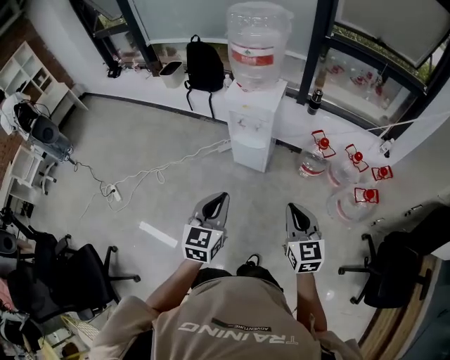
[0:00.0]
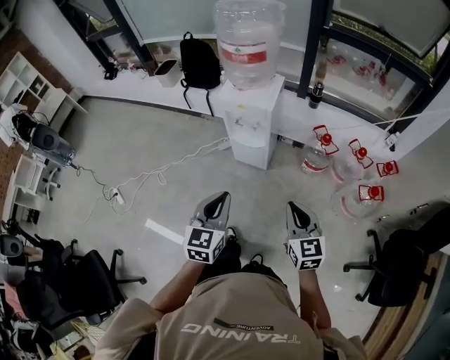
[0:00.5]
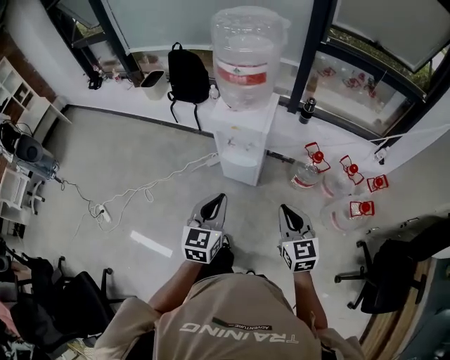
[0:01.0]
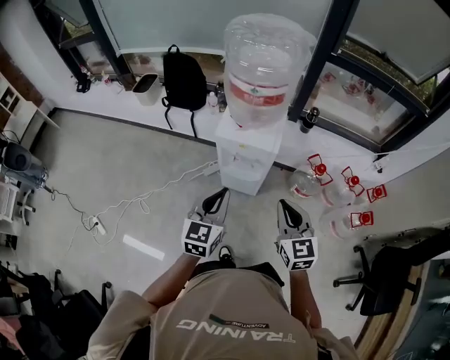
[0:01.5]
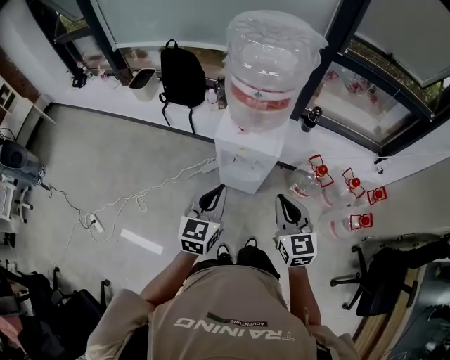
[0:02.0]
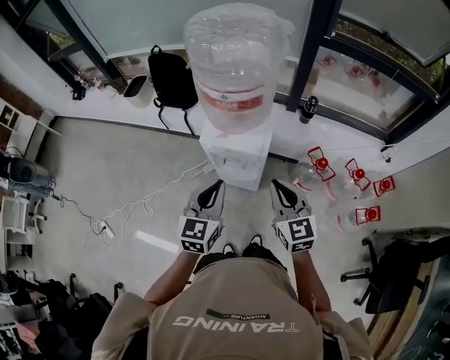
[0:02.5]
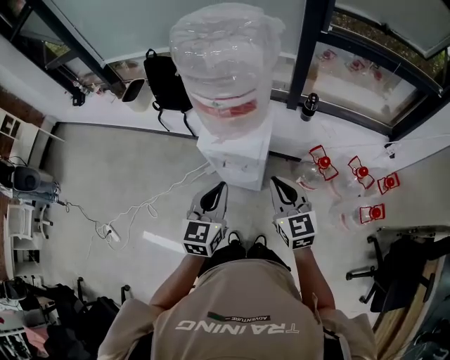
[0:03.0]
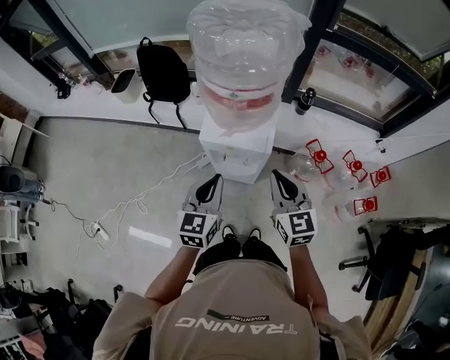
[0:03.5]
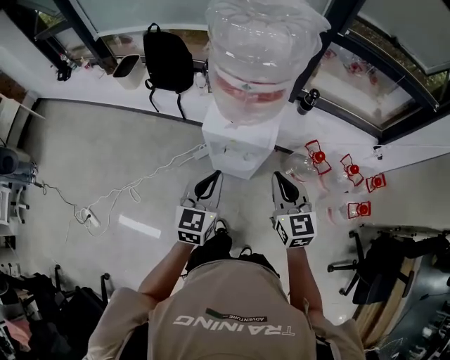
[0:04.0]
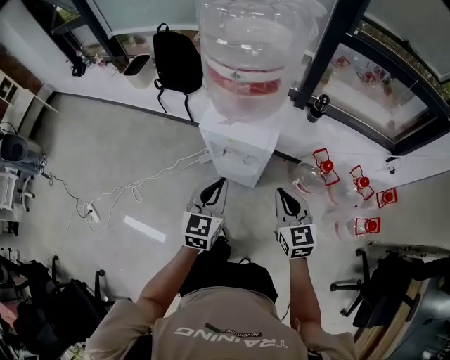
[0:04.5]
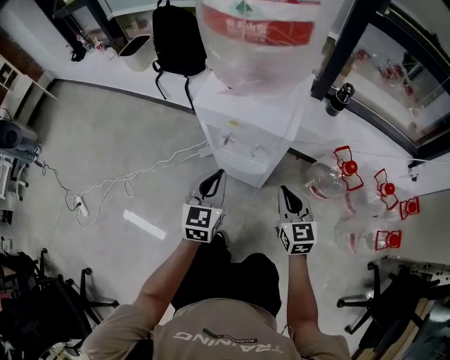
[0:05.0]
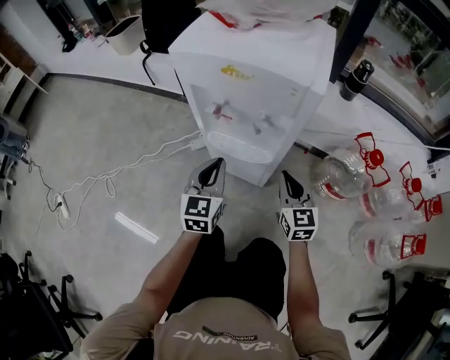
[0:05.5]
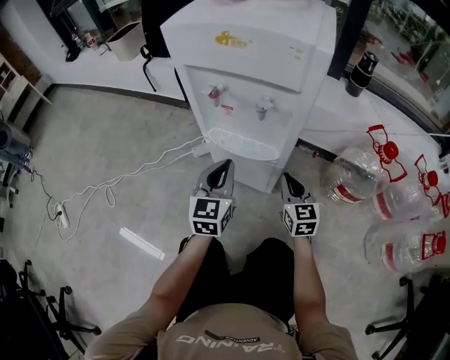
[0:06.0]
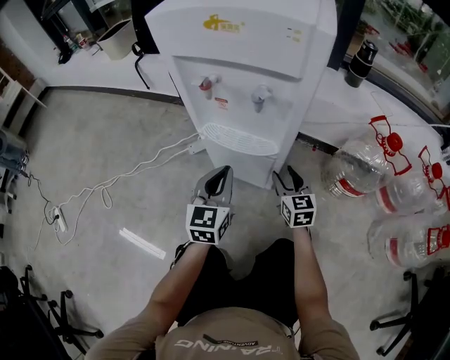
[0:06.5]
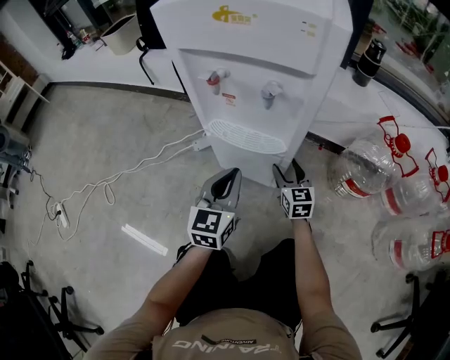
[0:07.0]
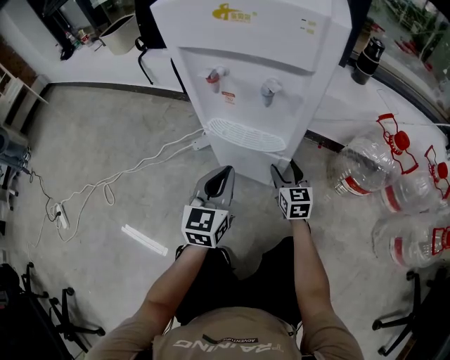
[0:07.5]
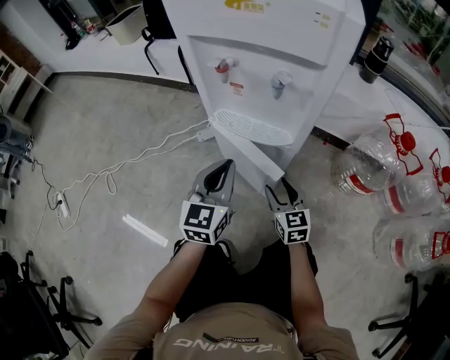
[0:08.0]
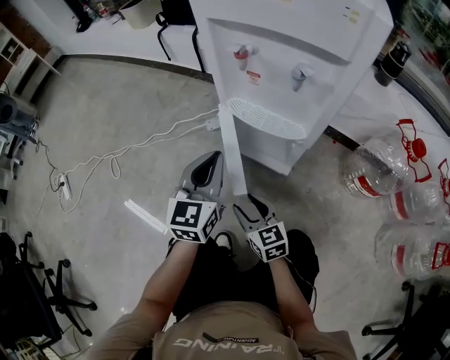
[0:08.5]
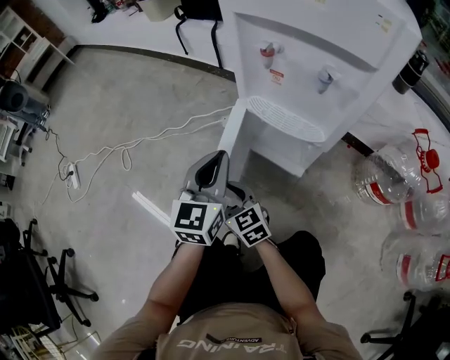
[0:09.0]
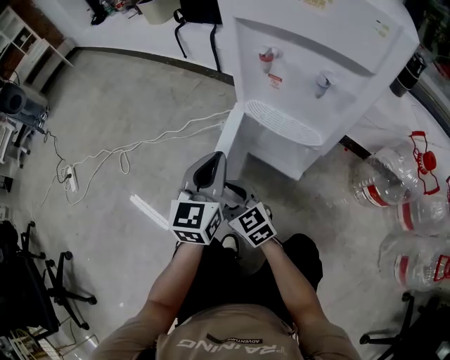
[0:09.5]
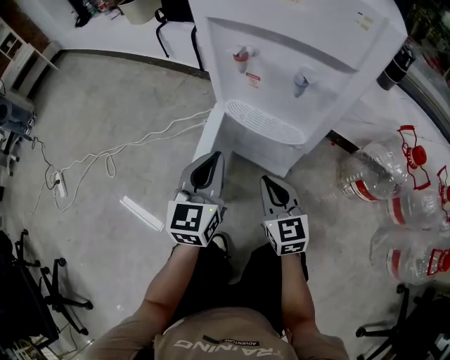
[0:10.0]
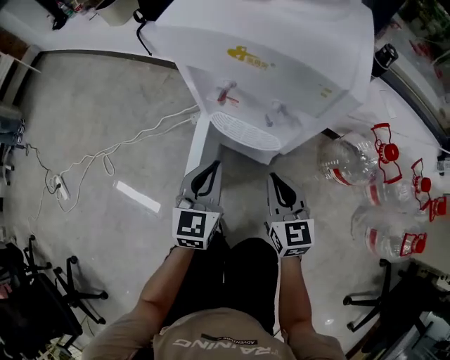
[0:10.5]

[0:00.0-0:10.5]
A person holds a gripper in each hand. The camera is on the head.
0:00.0 to 0:02.0: Both grippers travel together forward, roughly 30 cm.
0:02.0 to 0:04.0: Both grippers travel together forward, some 5 cm. The left gripper travels to the right and back again, some 10 cm each way.
0:04.0 to 0:06.5: Both grippers move downward, roughly 60 cm. The right gripper opens.
0:06.5 to 0:08.5: The left gripper heads to the left, covering roughly 10 cm. The right gripper goes approximately 25 cm to the left and backward, and swivels approximately 30 degrees.
0:08.5 to 0:10.5: The right gripper moves upward and to the right, about 25 cm, swivels approximately 20 degrees, and closes up; the left gripper goes approximately 5 cm upward.

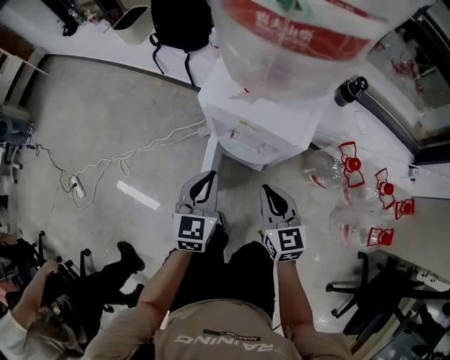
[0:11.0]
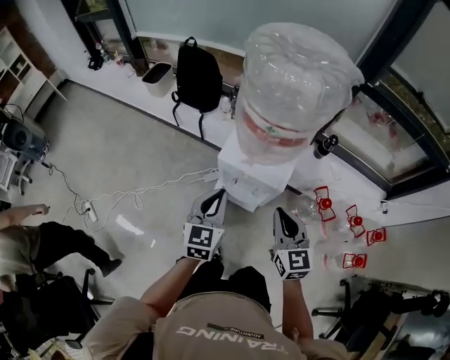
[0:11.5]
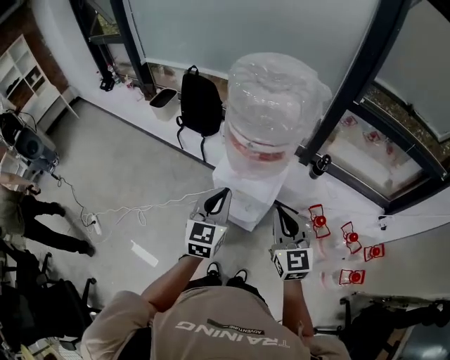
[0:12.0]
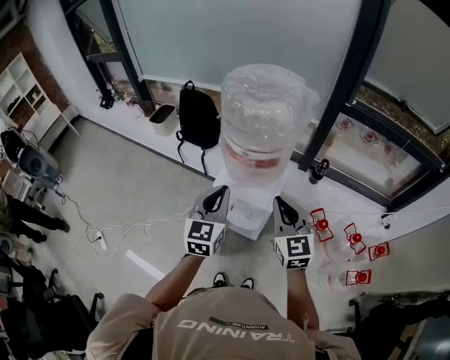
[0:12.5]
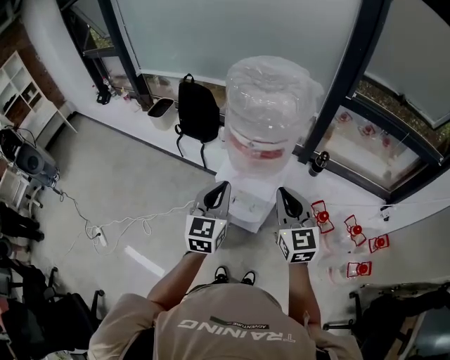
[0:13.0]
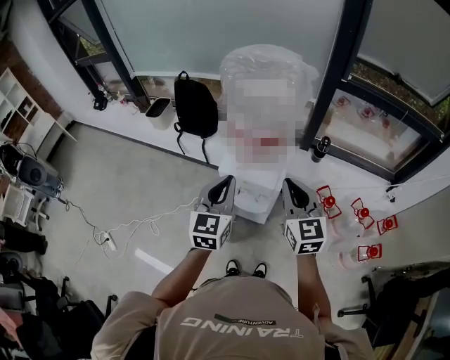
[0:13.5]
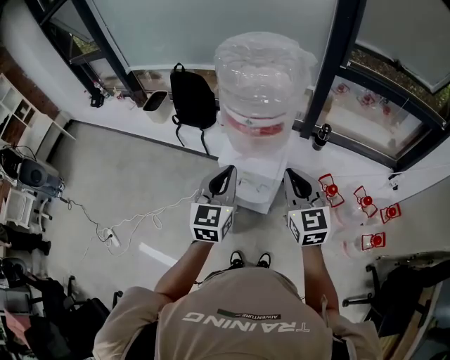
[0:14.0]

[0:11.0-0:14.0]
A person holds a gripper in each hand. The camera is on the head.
0:11.0 to 0:12.5: Both grippers travel together upward, roughly 35 cm. The right gripper rotates approximately 20 degrees.
0:12.5 to 0:14.0: The grippers stay close to where they were, moving slightly.

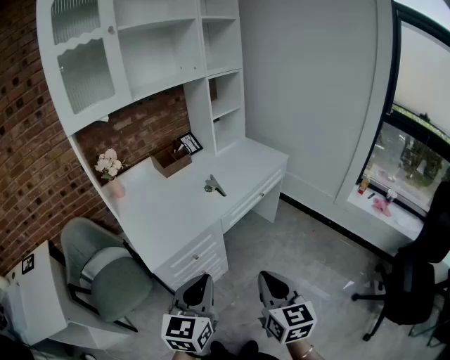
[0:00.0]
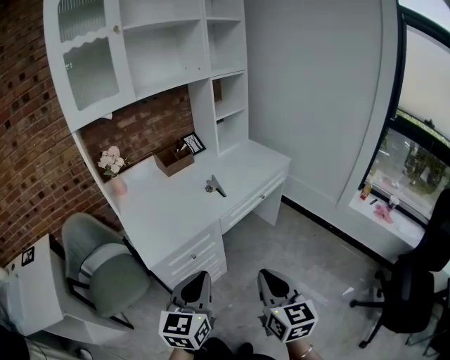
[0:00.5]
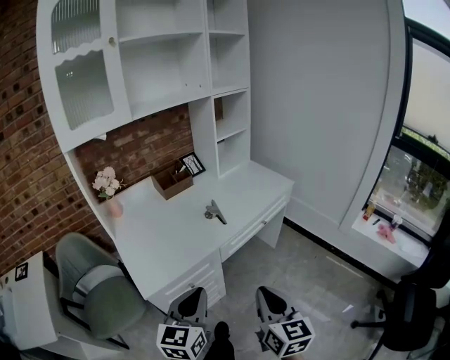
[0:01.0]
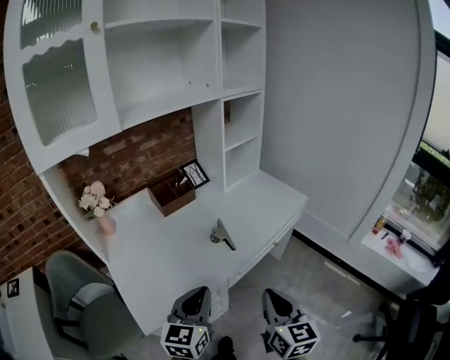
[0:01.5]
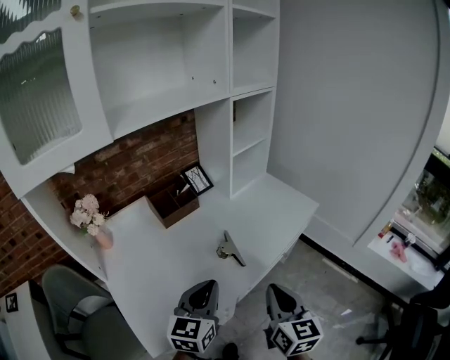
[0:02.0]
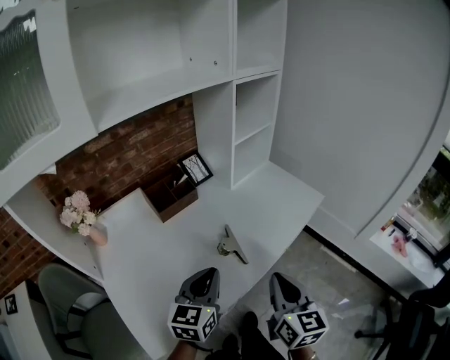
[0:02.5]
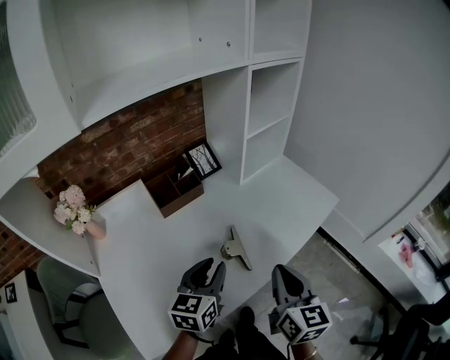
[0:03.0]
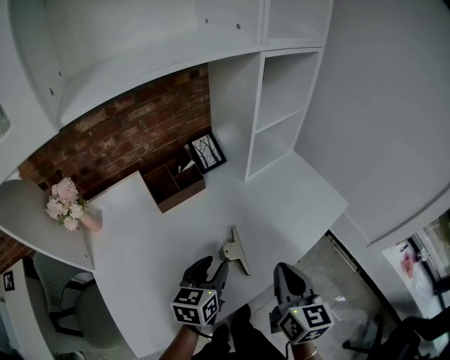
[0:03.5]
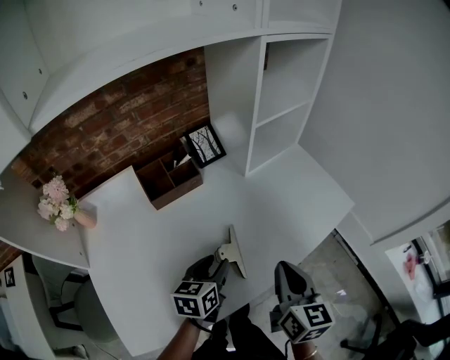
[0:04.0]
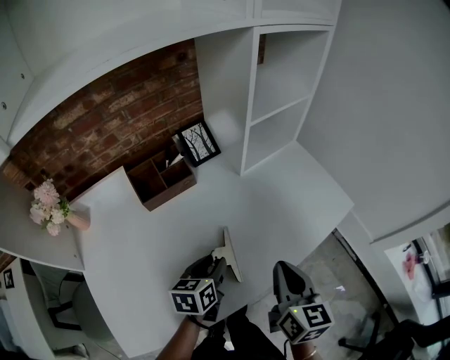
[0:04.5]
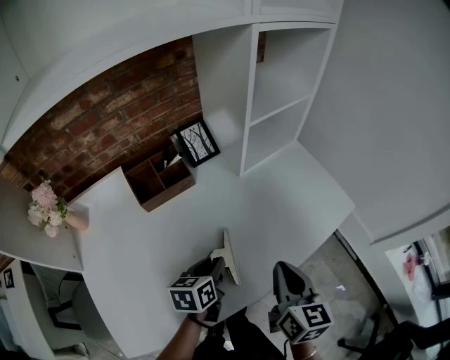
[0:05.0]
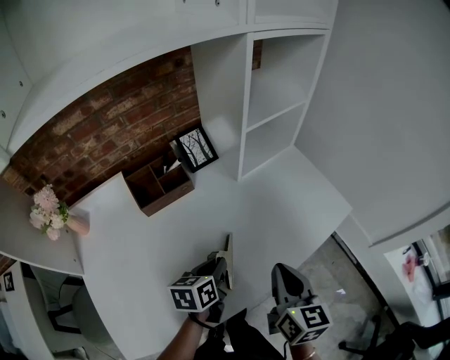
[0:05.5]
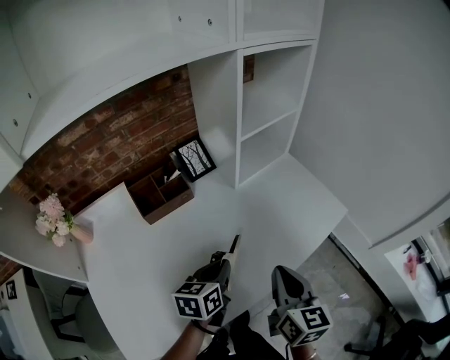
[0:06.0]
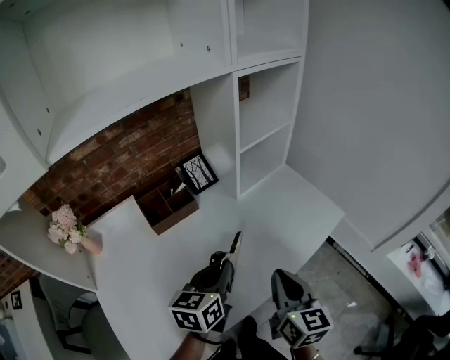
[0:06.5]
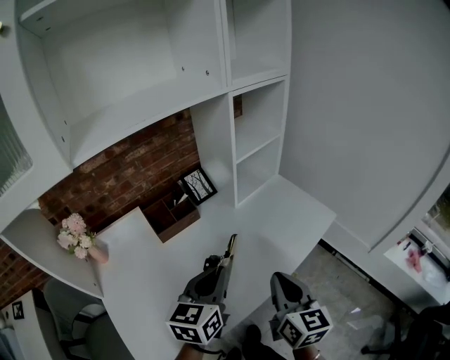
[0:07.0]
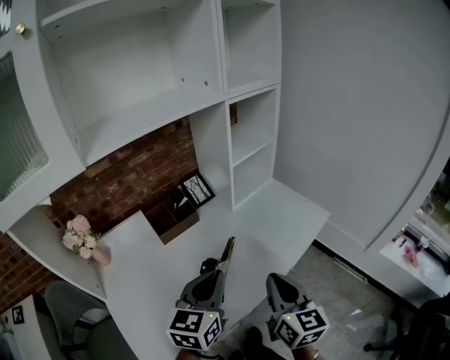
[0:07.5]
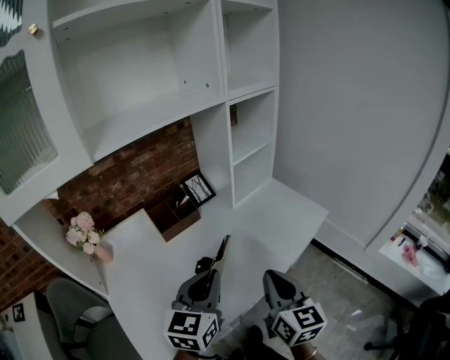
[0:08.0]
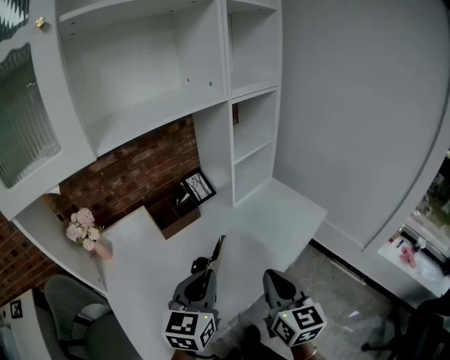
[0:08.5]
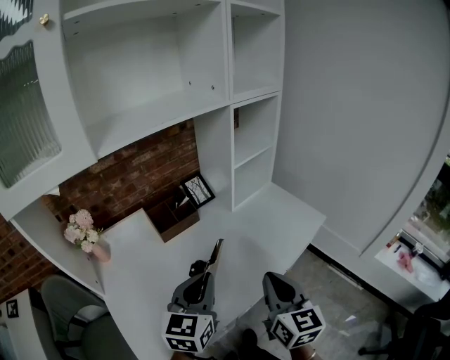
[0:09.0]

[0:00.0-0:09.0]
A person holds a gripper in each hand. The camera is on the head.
0:00.0 to 0:02.0: The grippers both shift forward by some 35 cm.
0:02.0 to 0:04.5: The left gripper travels forward and downward by about 25 cm, turns by about 40 degrees, and opens; the right gripper goes some 20 cm forward.
0:04.5 to 0:07.0: The left gripper is displaced upward by some 20 cm, swivels approximately 30 degrees, and closes up. The right gripper is displaced upward and backward by approximately 10 cm.
0:07.0 to 0:09.0: The grippers both shift backward by about 5 cm.

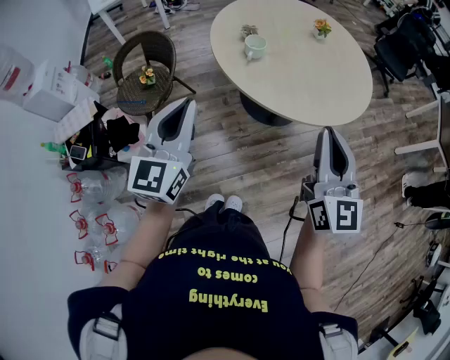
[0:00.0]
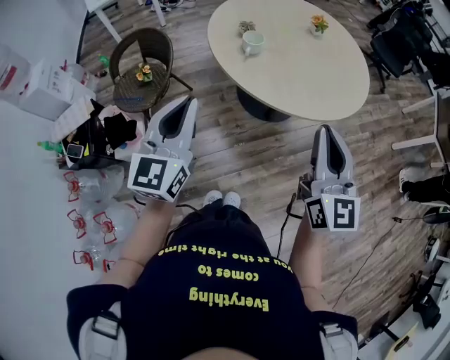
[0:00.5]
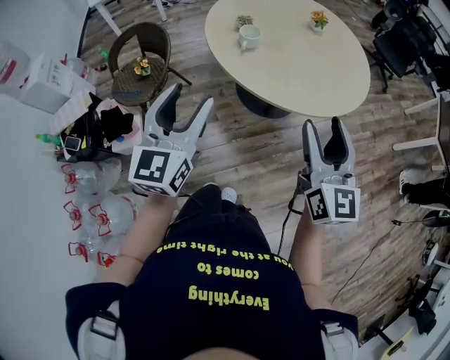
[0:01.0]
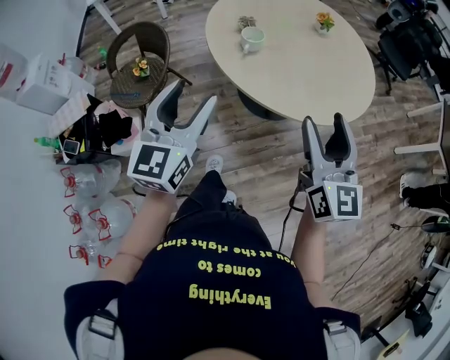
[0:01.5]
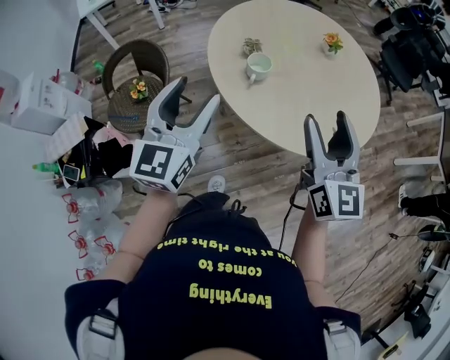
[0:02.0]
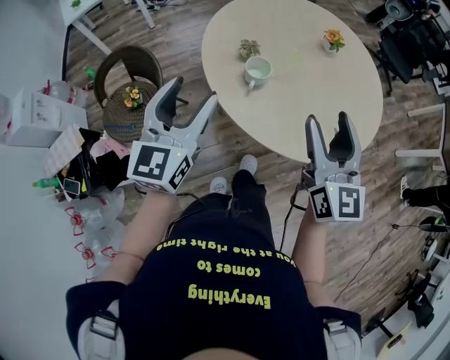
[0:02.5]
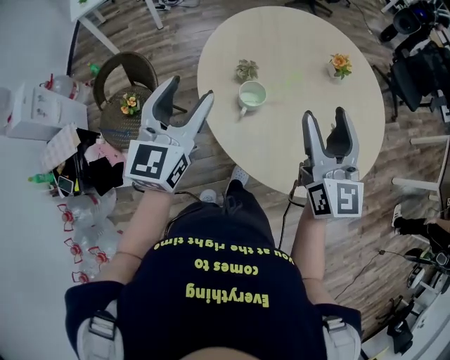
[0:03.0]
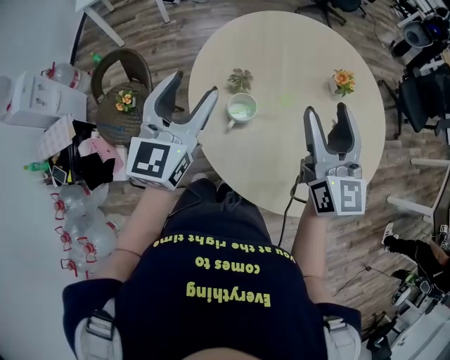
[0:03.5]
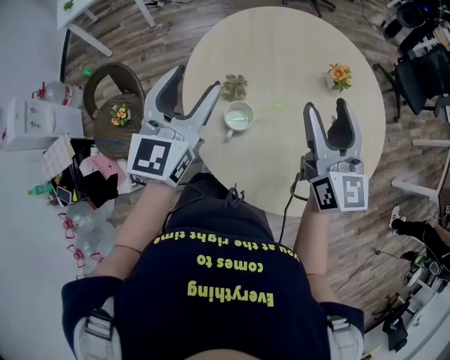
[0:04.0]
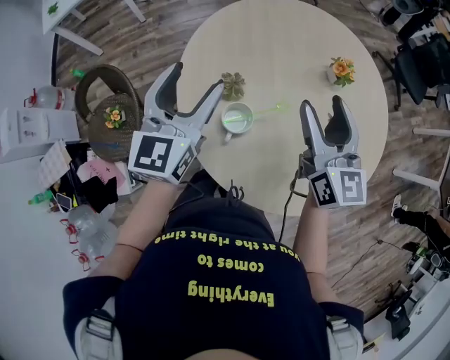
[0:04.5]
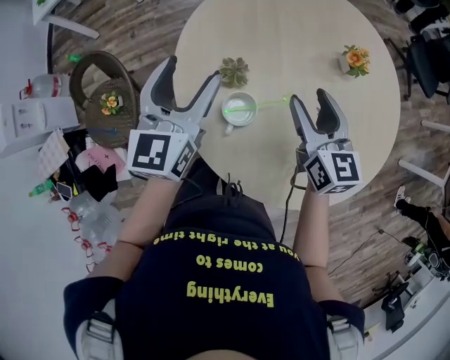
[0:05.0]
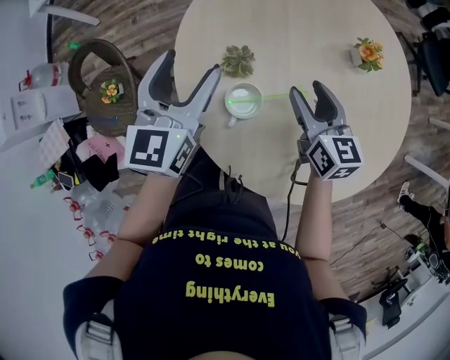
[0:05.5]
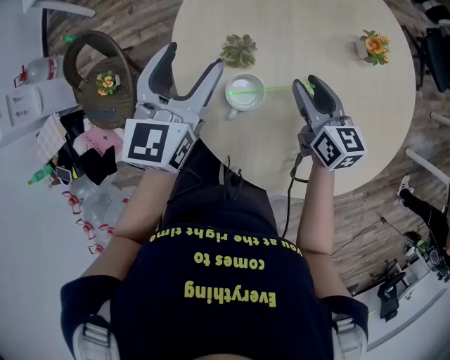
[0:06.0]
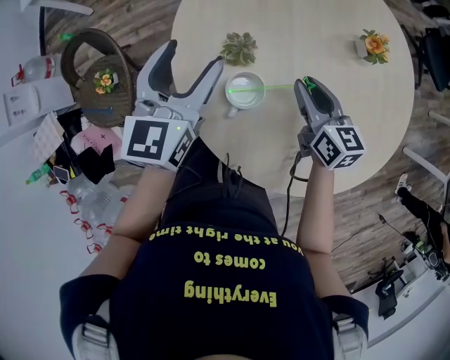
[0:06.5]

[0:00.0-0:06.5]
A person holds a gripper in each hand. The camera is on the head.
0:00.0 to 0:02.0: Both grippers move forward, roughly 20 cm. The right gripper opens up. The left gripper opens.
0:02.0 to 0:04.5: Both grippers move forward, roughly 35 cm.
0:04.5 to 0:06.5: The right gripper shifts approximately 20 cm downward, turns by roughly 30 degrees, and closes its fingers; the left gripper travels downward by roughly 10 cm.
